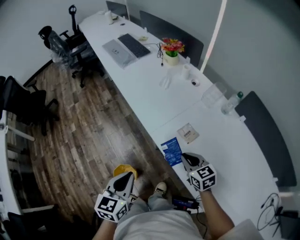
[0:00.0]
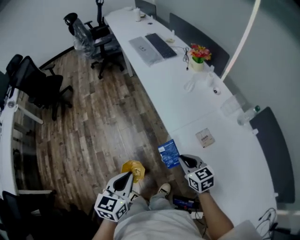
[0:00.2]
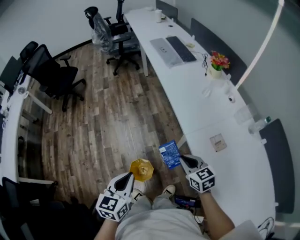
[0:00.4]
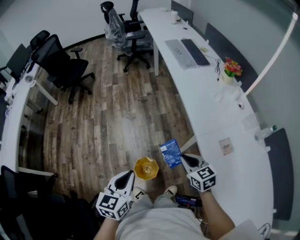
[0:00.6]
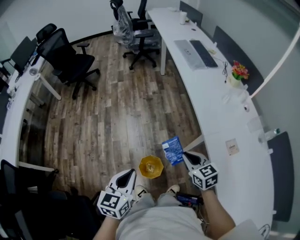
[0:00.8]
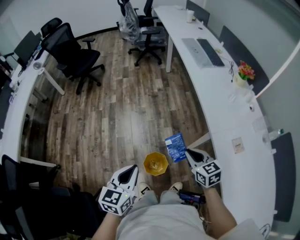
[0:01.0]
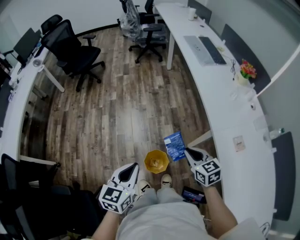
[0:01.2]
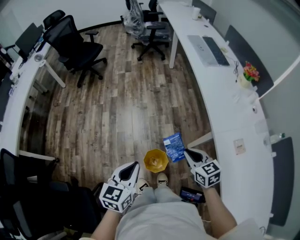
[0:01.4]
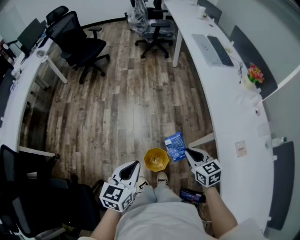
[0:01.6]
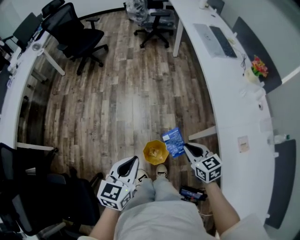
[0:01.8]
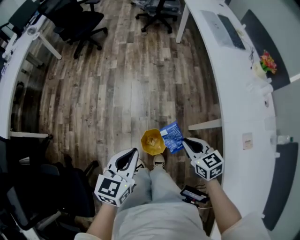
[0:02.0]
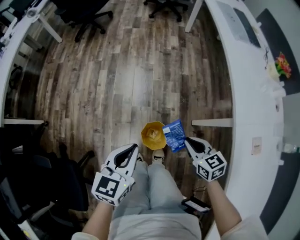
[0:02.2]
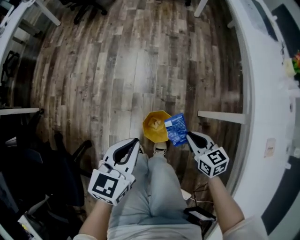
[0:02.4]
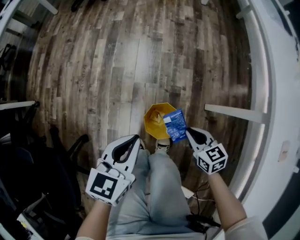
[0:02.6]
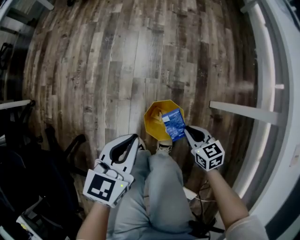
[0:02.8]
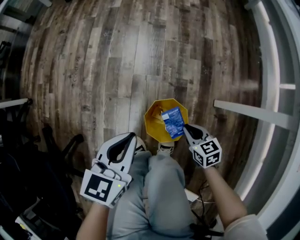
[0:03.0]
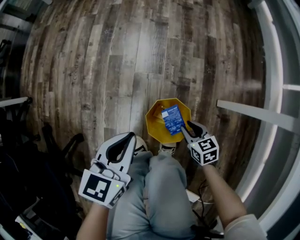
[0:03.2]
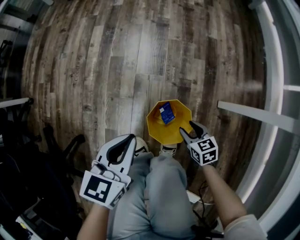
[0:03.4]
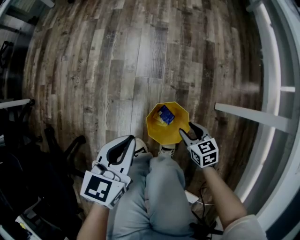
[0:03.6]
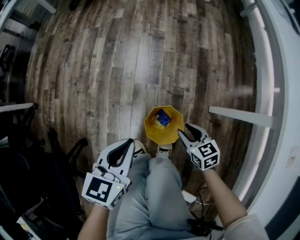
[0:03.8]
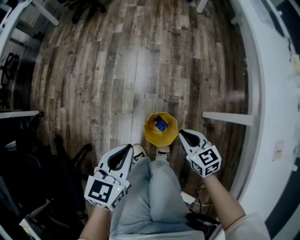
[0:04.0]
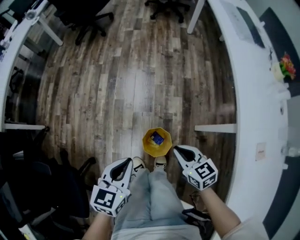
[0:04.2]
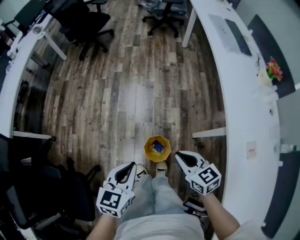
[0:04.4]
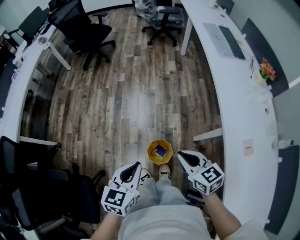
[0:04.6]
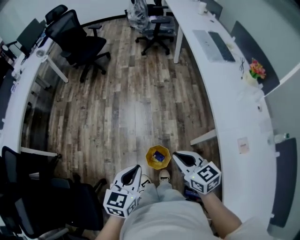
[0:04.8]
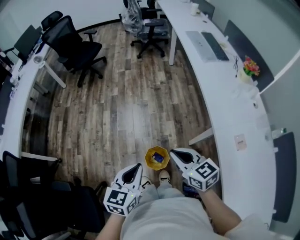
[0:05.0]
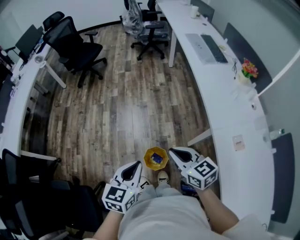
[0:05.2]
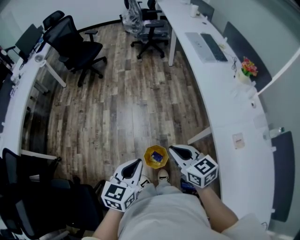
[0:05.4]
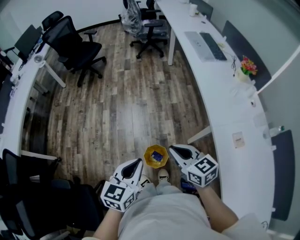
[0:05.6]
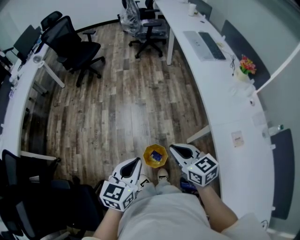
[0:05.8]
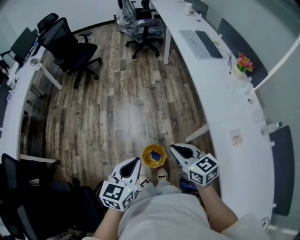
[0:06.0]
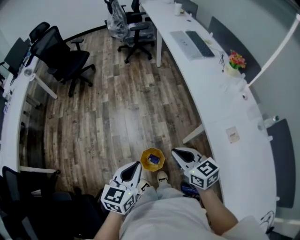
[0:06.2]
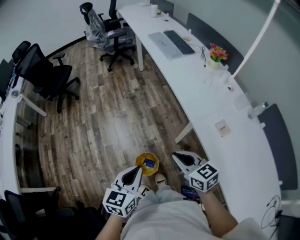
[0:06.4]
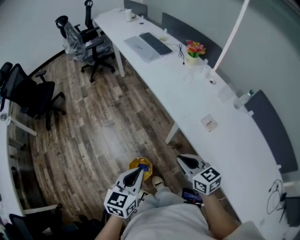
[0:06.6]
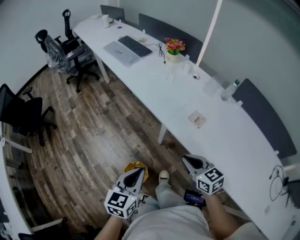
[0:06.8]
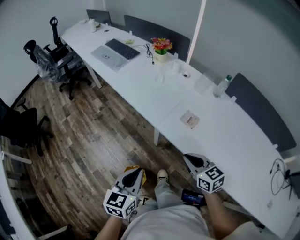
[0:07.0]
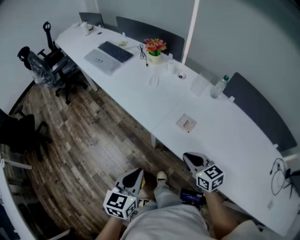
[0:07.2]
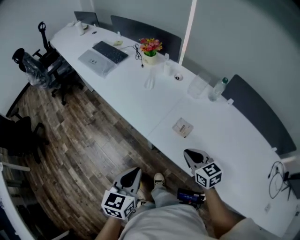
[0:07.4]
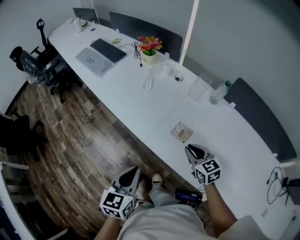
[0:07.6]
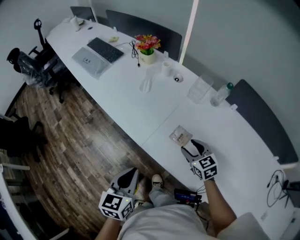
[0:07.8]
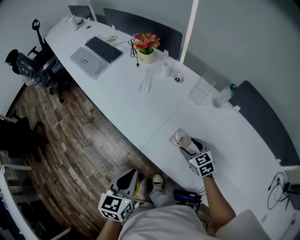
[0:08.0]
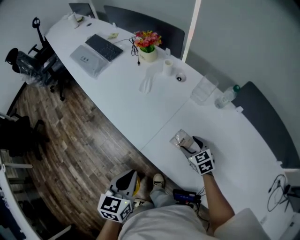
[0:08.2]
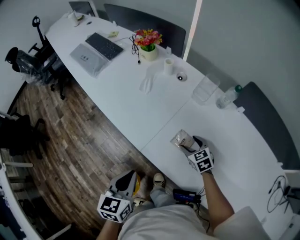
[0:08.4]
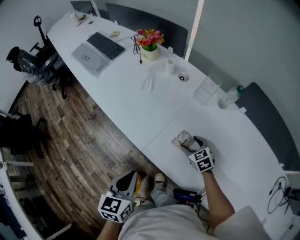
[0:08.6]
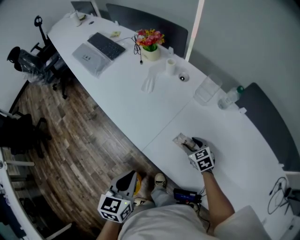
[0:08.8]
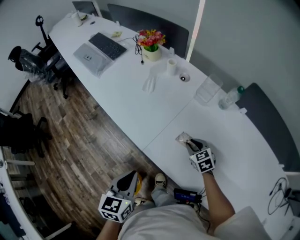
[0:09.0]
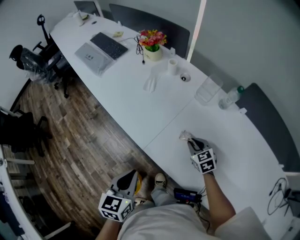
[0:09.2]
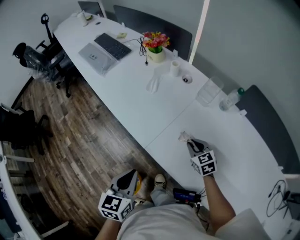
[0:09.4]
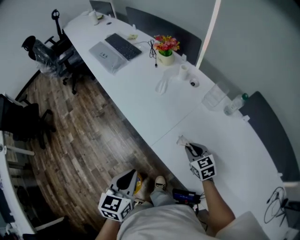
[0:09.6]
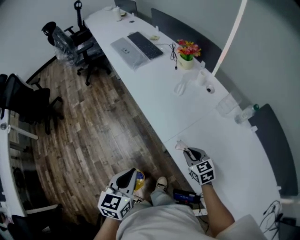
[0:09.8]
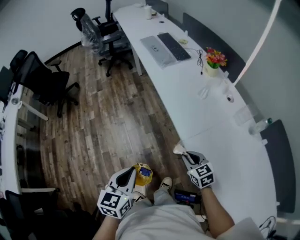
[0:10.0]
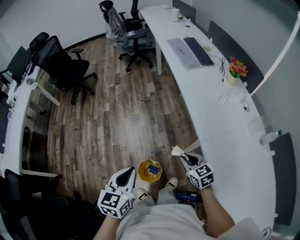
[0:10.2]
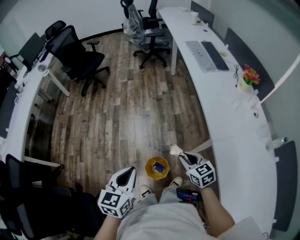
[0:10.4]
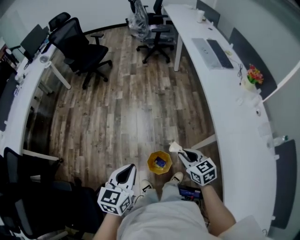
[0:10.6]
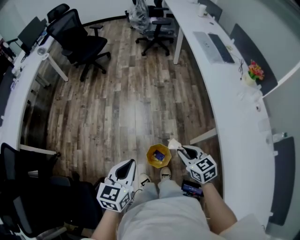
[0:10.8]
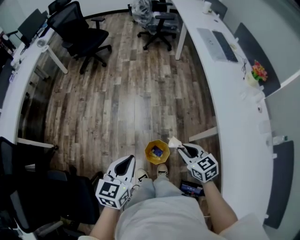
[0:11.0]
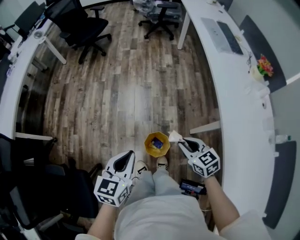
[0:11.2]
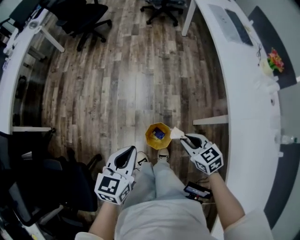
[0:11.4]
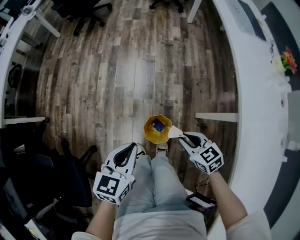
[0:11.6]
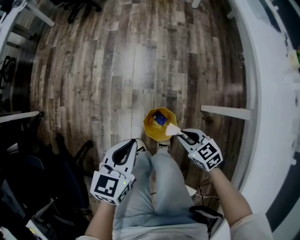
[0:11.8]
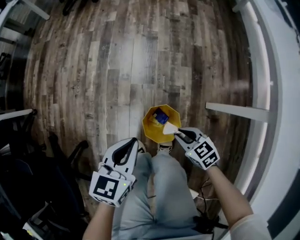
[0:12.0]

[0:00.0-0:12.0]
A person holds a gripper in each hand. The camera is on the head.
0:00.0 to 0:01.6: The left gripper changes place by about 30 cm, and turns by roughly 30 degrees. The right gripper changes place by roughly 35 cm, and rotates approximately 30 degrees.
0:01.6 to 0:03.0: The two grippers go some 40 cm downward. The right gripper turns by about 20 degrees.
0:03.0 to 0:04.4: Both grippers move upward, approximately 35 cm. The right gripper opens and closes again.
0:04.4 to 0:06.0: The two grippers go about 10 cm upward.
0:06.0 to 0:07.6: The right gripper shifts by roughly 40 cm, and turns by approximately 50 degrees; the left gripper changes place by some 35 cm, and changes its angle by approximately 40 degrees.
0:07.6 to 0:09.0: The right gripper is displaced downward and forward by roughly 15 cm, and opens, then closes once more, while the left gripper heads forward, covering about 5 cm.
0:09.0 to 0:10.4: The left gripper changes place by approximately 40 cm, and changes its angle by about 40 degrees. The right gripper shifts by about 50 cm, and turns by approximately 50 degrees.
0:10.4 to 0:12.0: The grippers both shift downward by roughly 35 cm. The right gripper swivels approximately 30 degrees.

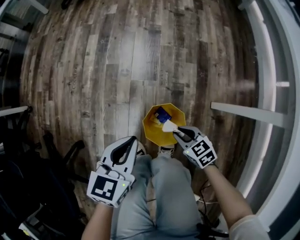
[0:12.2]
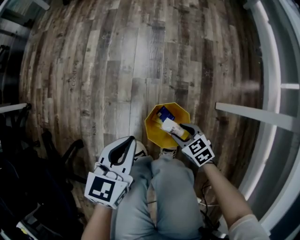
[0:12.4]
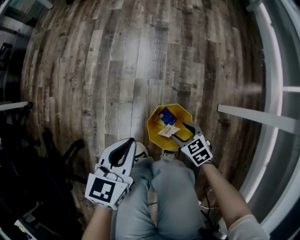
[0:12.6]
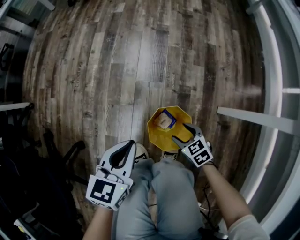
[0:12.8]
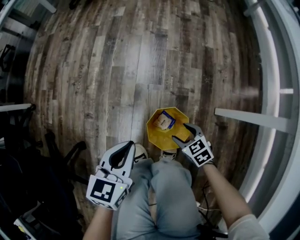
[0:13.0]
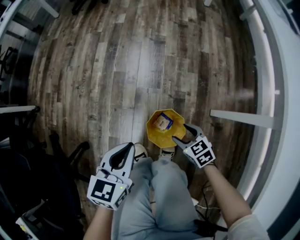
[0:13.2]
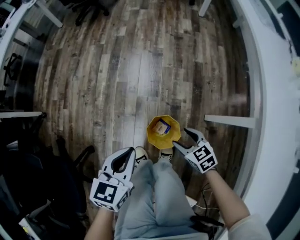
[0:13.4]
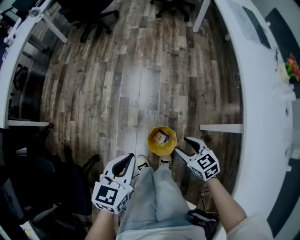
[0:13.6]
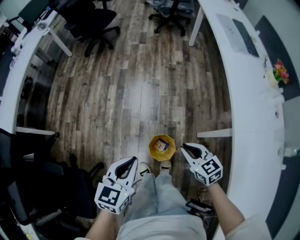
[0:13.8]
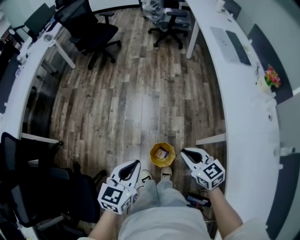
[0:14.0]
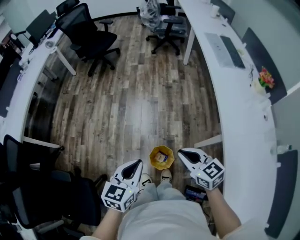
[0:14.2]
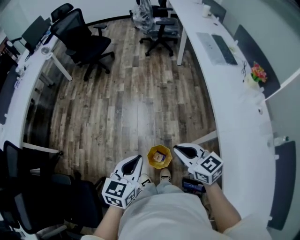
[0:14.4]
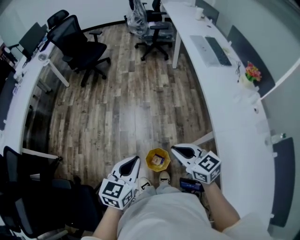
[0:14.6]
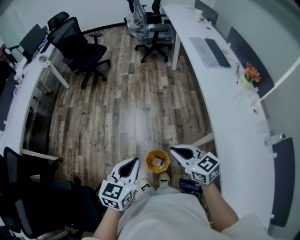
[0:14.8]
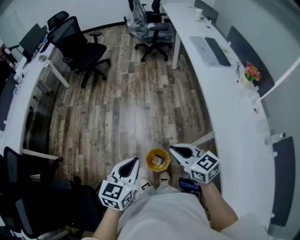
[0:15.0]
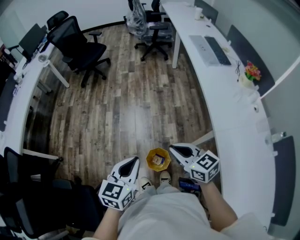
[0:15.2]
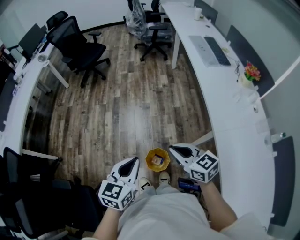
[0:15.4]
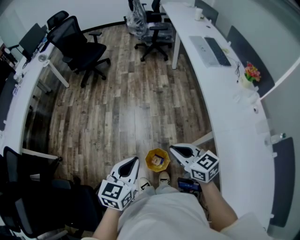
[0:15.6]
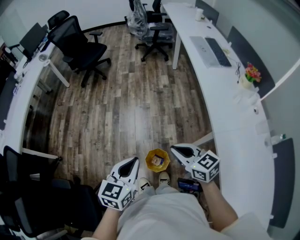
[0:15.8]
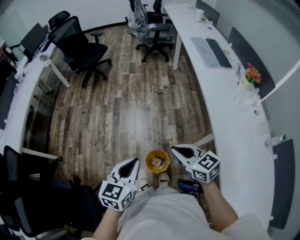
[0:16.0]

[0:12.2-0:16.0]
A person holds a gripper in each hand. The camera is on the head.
0:12.2 to 0:13.4: The two grippers go about 15 cm upward. The right gripper opens up.
0:13.4 to 0:14.8: The right gripper heads upward, covering some 40 cm, changes its angle by roughly 30 degrees, and closes; the left gripper heads upward, covering approximately 30 cm.
0:14.8 to 0:16.0: There are only small adjustments of the grippers.

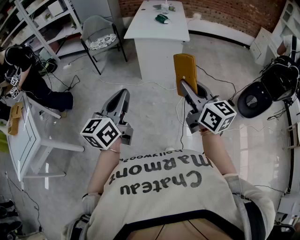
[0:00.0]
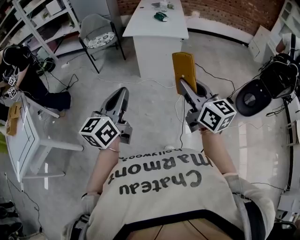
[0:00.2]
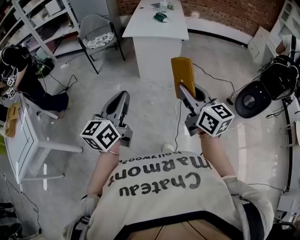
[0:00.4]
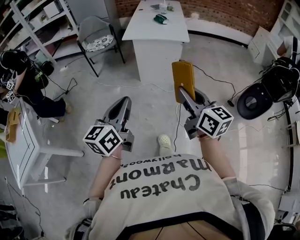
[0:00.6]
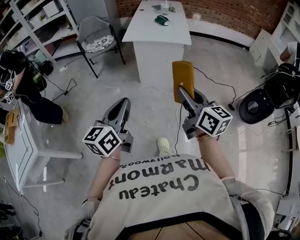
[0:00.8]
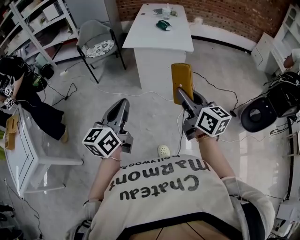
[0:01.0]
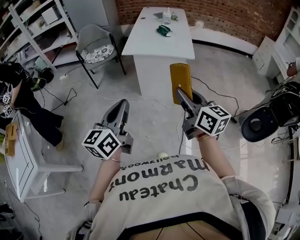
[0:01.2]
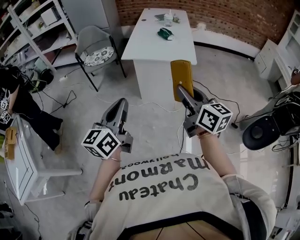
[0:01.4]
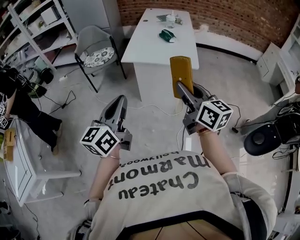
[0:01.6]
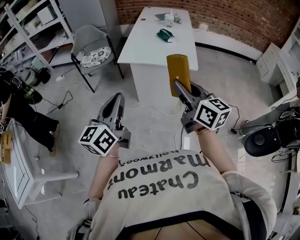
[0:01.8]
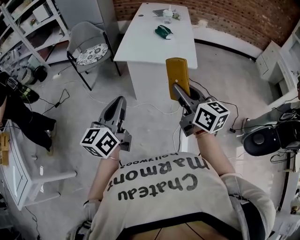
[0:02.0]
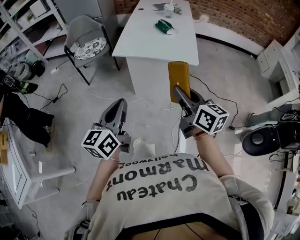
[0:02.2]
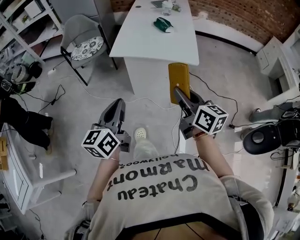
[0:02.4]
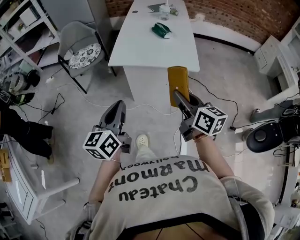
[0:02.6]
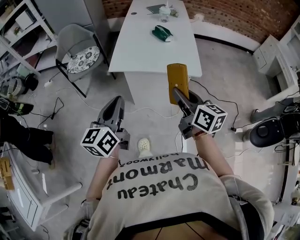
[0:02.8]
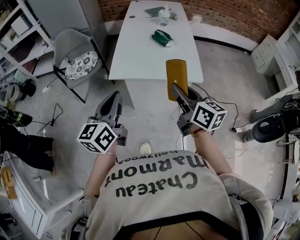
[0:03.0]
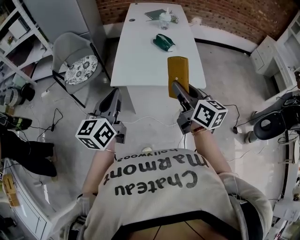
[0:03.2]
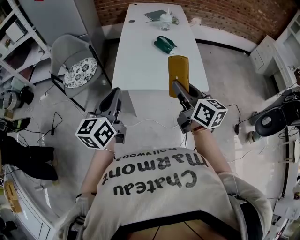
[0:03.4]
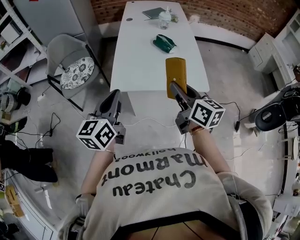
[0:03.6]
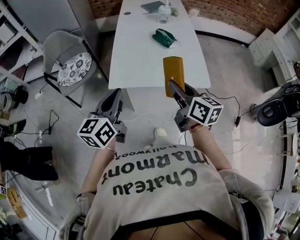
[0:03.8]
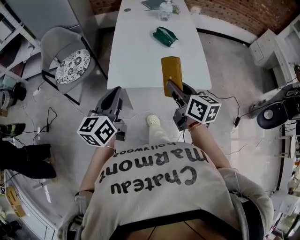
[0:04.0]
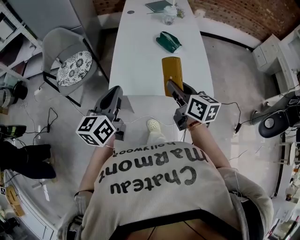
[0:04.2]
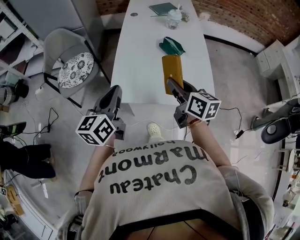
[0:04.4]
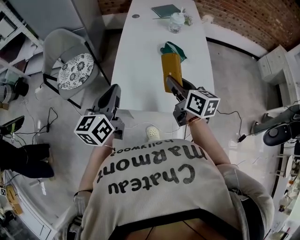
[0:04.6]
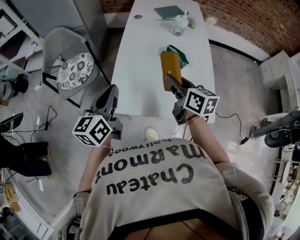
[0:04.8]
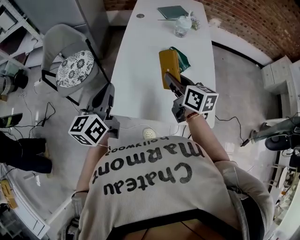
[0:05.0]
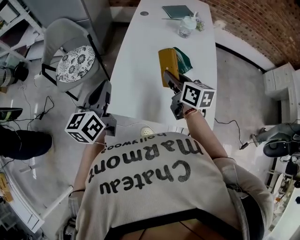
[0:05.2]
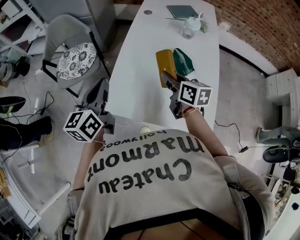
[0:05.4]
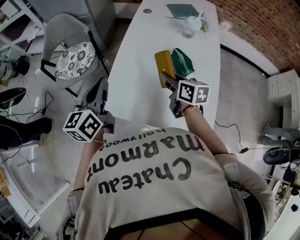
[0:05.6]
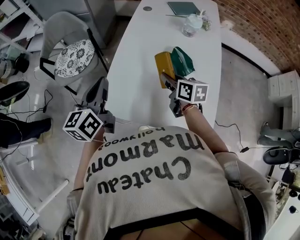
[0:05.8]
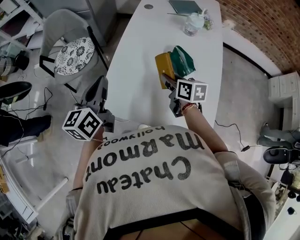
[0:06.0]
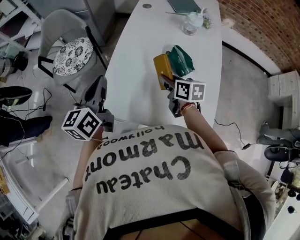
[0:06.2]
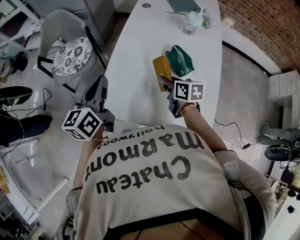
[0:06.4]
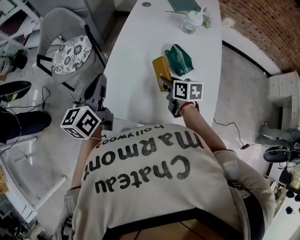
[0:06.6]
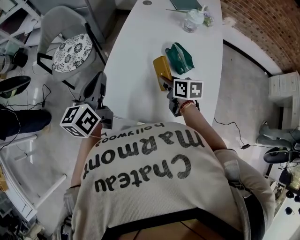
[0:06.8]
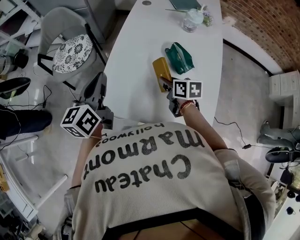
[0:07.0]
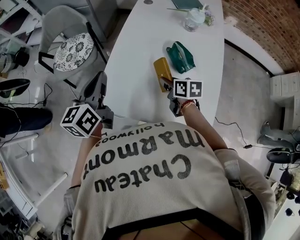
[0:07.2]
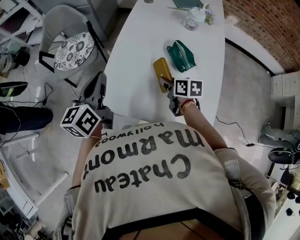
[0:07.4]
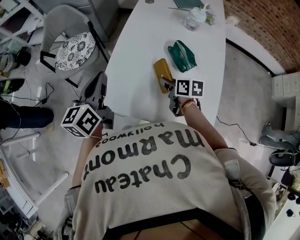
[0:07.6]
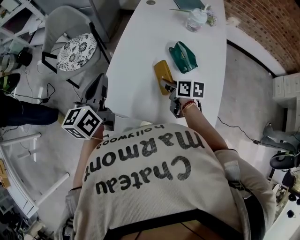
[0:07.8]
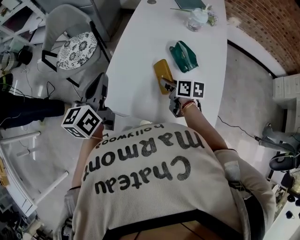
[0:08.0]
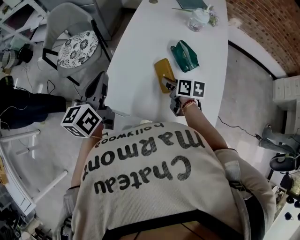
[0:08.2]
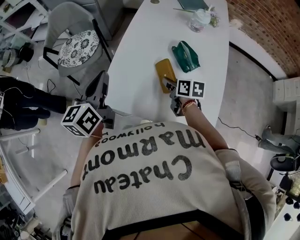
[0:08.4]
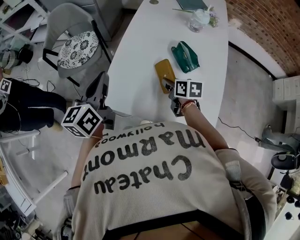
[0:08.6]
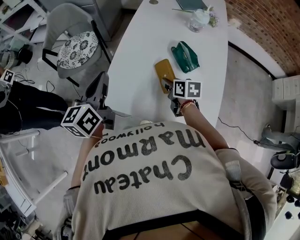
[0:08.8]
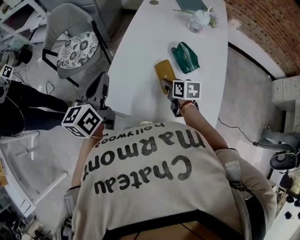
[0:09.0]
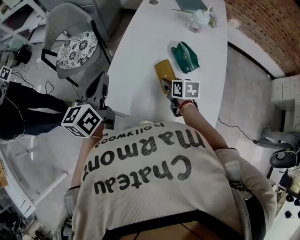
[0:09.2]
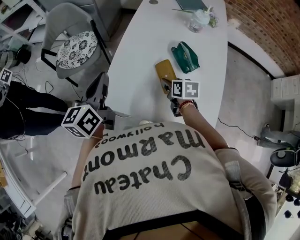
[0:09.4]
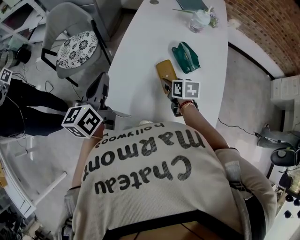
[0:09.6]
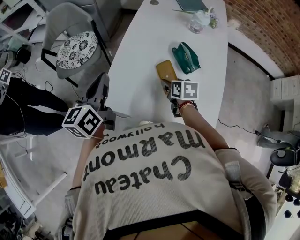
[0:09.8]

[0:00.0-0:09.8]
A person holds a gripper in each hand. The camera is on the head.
0:00.0 to 0:01.4: Both grippers travel together forward, some 25 cm.
0:01.4 to 0:02.8: The grippers both shift forward by about 25 cm.
0:02.8 to 0:04.2: Both grippers move forward, approximately 25 cm.
0:04.2 to 0:05.6: Both grippers travel together forward, about 20 cm.
0:05.6 to 0:07.0: The right gripper is displaced downward by approximately 10 cm.
0:07.0 to 0:09.8: The grippers move only a little.
